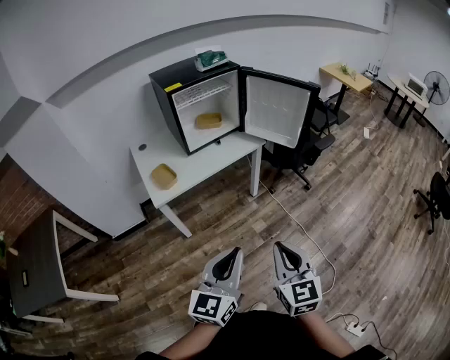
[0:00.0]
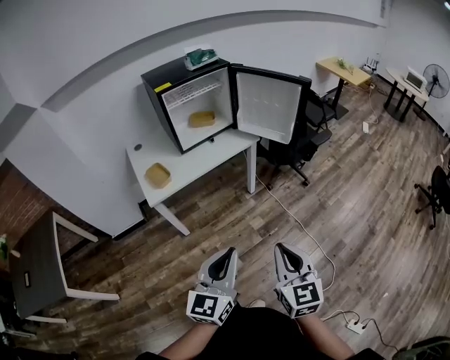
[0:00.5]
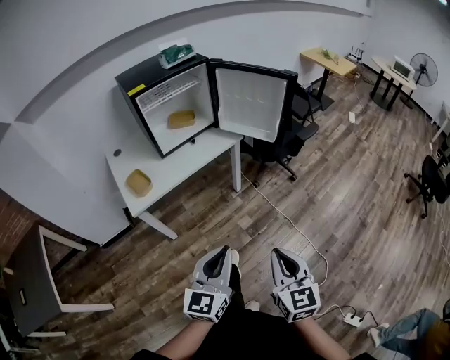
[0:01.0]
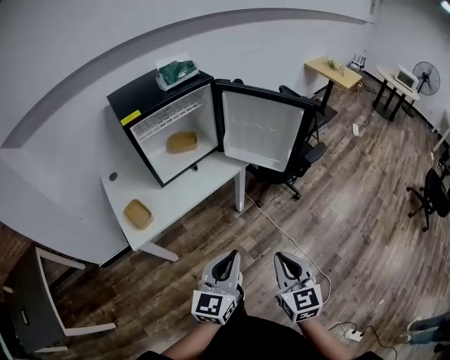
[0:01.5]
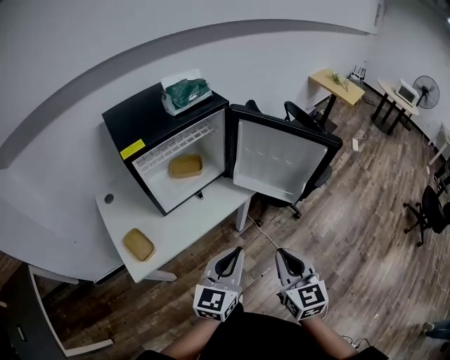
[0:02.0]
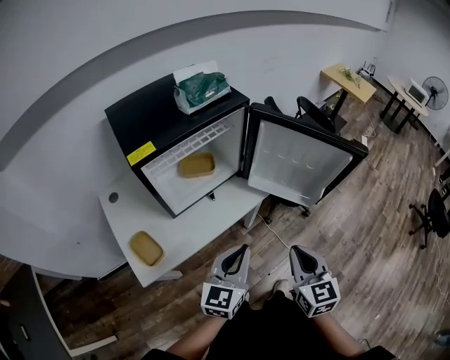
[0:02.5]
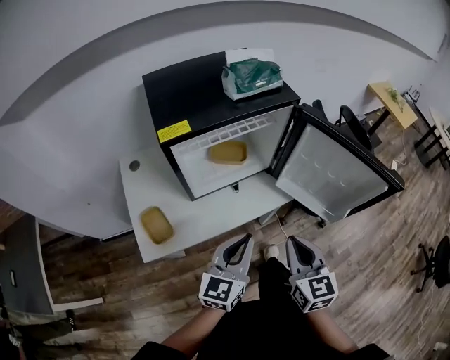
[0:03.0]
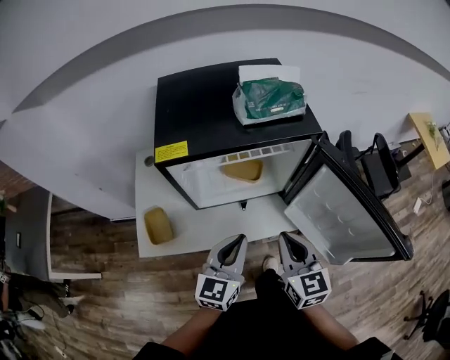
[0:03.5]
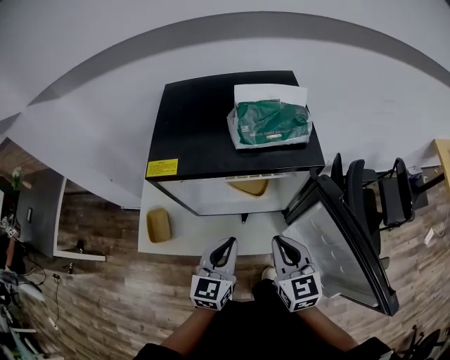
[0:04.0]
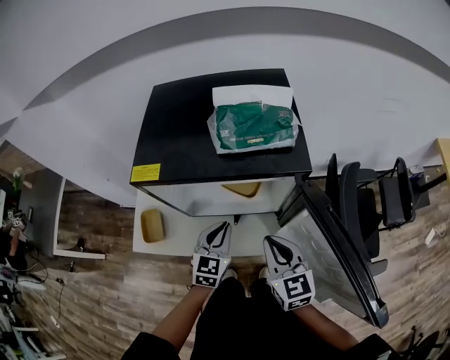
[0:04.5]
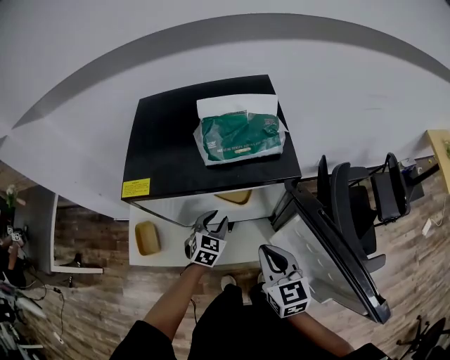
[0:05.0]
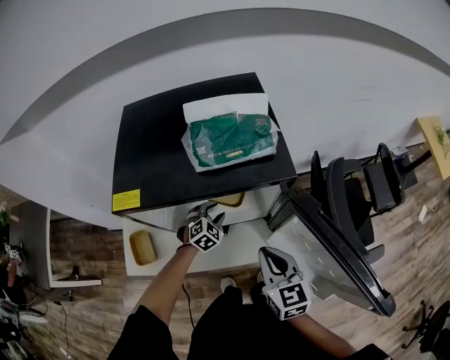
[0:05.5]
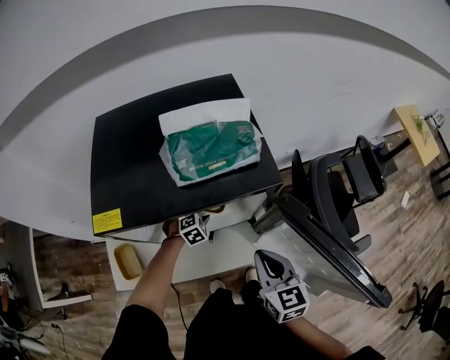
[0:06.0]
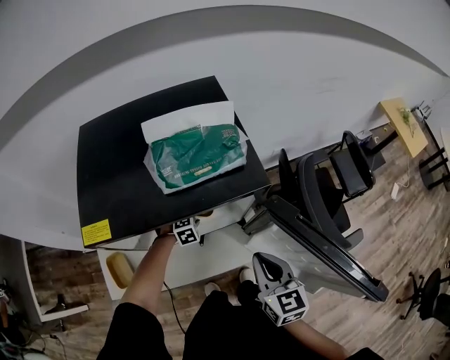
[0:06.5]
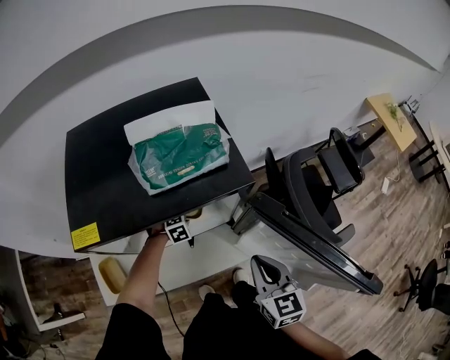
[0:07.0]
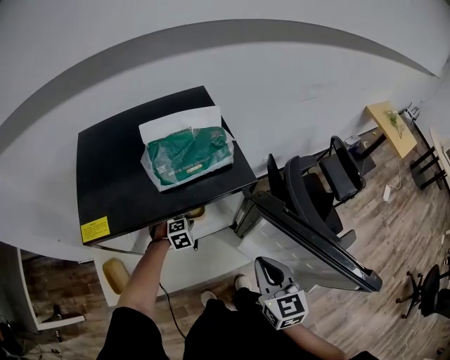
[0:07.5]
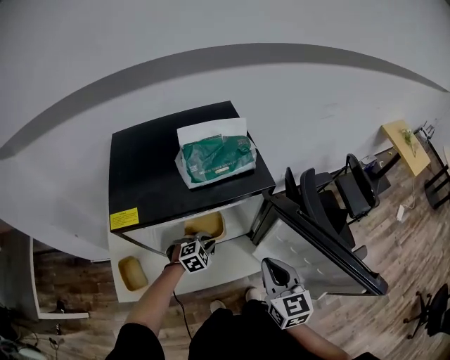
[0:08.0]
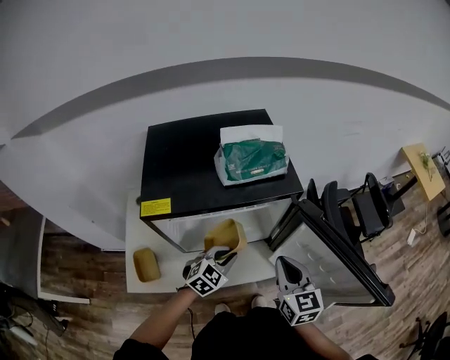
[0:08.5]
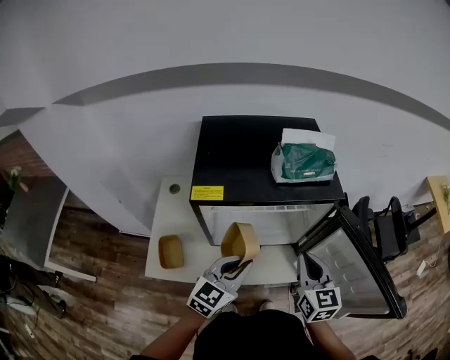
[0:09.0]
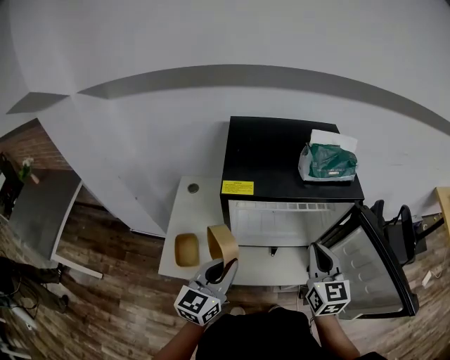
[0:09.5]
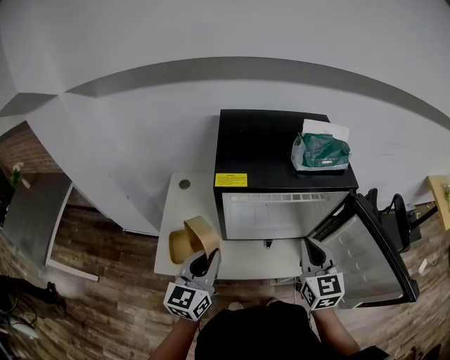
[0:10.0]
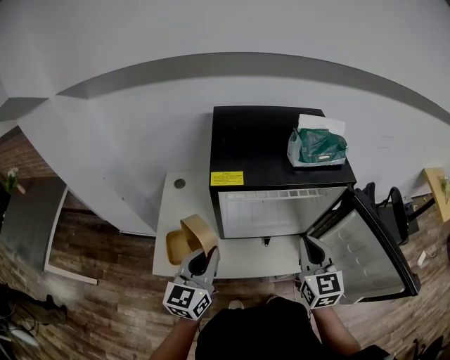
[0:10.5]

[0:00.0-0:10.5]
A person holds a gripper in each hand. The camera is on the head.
0:00.0 to 0:02.0: Both grippers move forward, roughly 40 cm.
0:02.0 to 0:04.0: The right gripper shifts by some 35 cm, and swivels approximately 40 degrees; the left gripper changes place by approximately 30 cm, and swivels some 40 degrees.
0:04.0 to 0:06.5: The right gripper travels to the right by approximately 5 cm, while the left gripper shifts about 35 cm downward and forward, points its fingers approximately 50 degrees further downward, and opens.
0:06.5 to 0:08.5: The left gripper shifts approximately 25 cm upward and backward, angles its fingers upward, by some 30 degrees, and closes its fingers.
0:08.5 to 0:10.5: The right gripper is displaced to the left by about 10 cm. Meanwhile the left gripper goes about 30 cm to the left, upward and backward, and points its fingers roughly 30 degrees further upward.

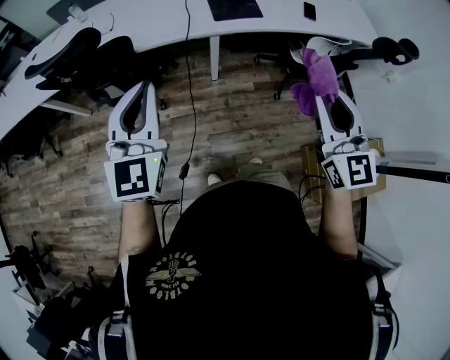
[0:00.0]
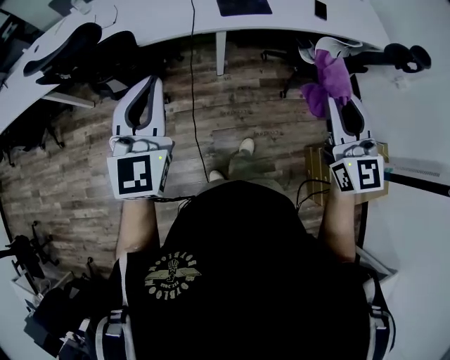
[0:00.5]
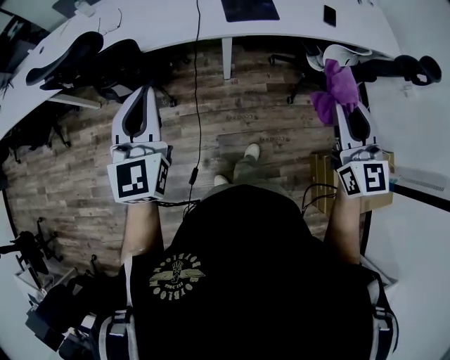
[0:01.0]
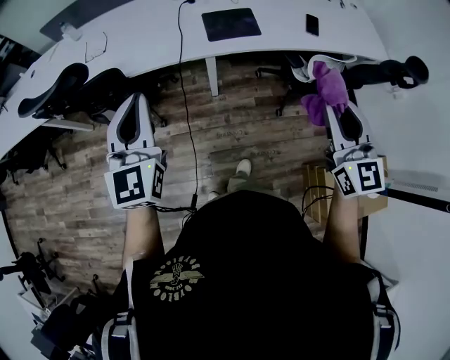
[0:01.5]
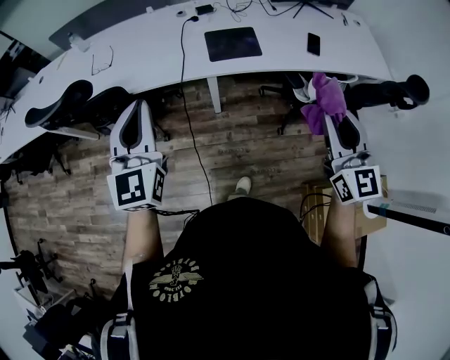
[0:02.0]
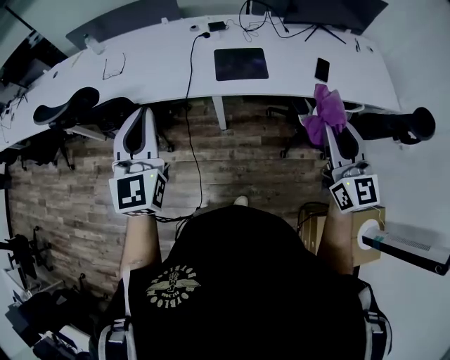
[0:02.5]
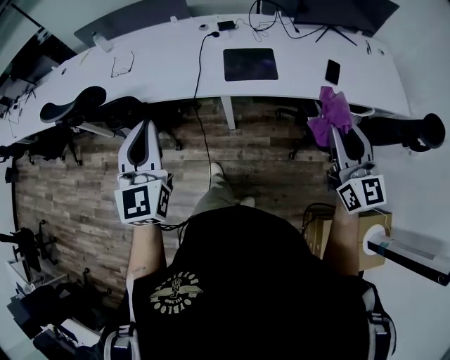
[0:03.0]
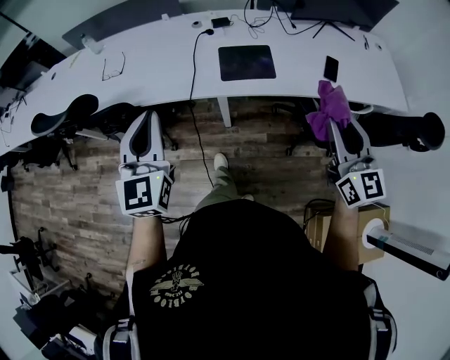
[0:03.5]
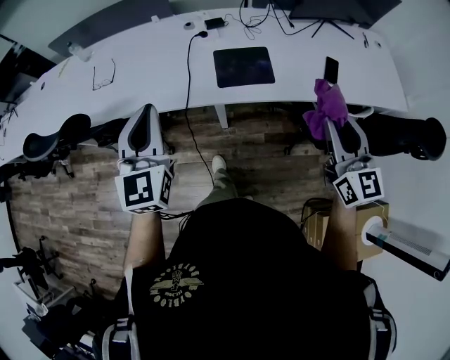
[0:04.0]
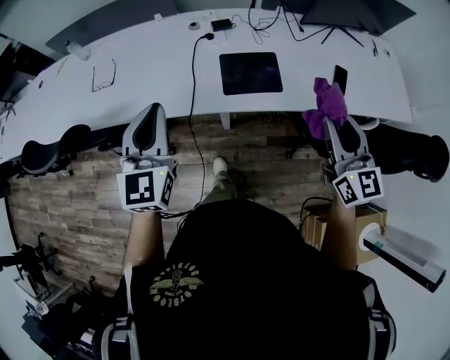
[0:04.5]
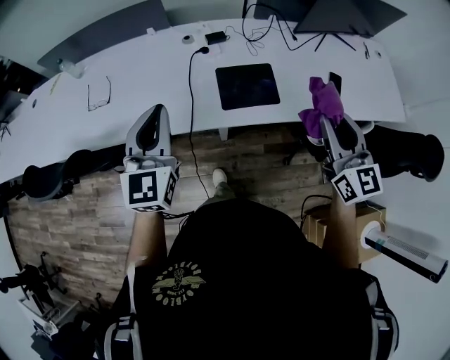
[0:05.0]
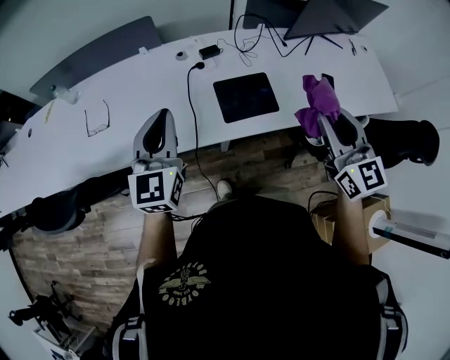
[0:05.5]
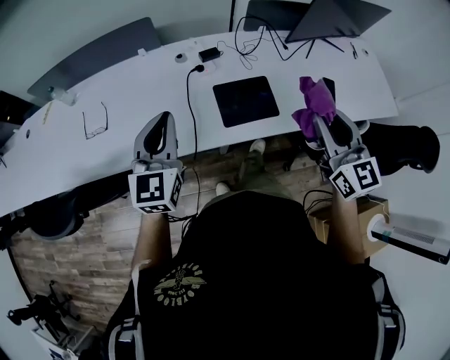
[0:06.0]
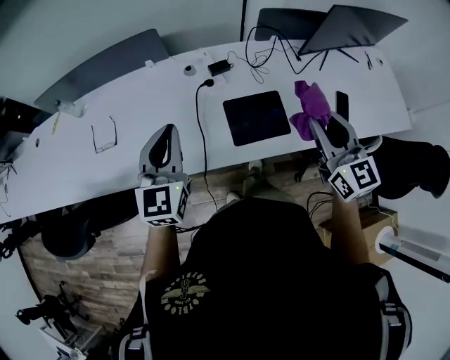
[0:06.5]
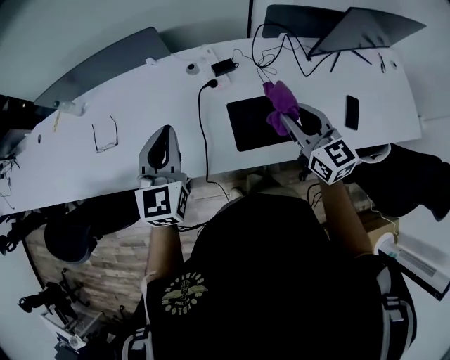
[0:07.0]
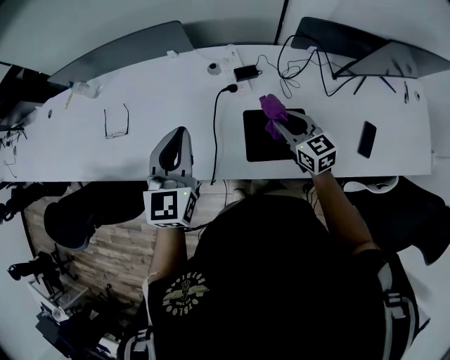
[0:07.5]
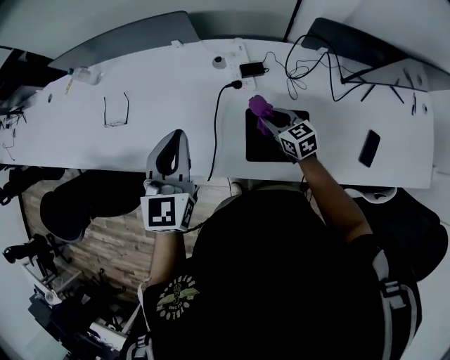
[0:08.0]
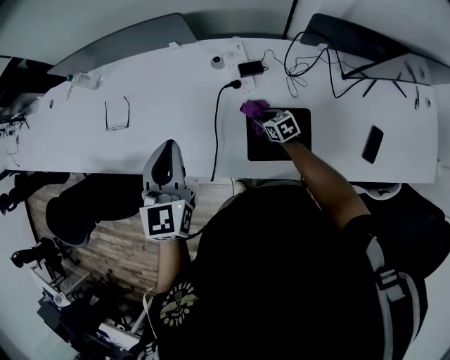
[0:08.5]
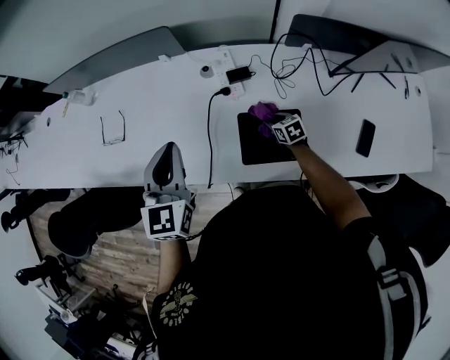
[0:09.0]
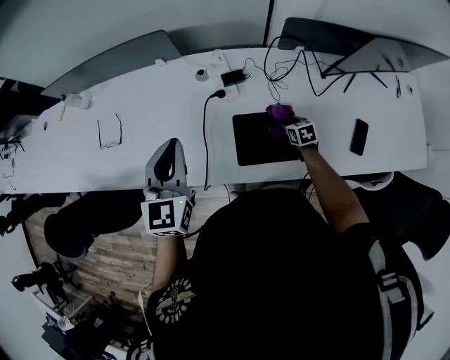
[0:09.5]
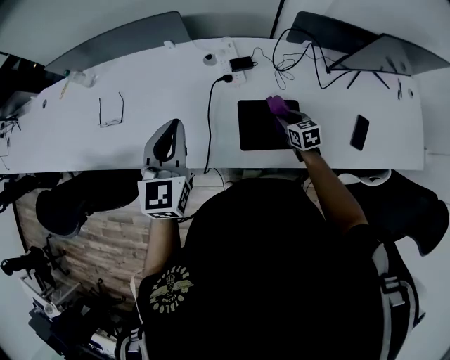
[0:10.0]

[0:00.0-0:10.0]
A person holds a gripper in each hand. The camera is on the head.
0:00.0 to 0:02.0: The left gripper travels forward by about 15 cm. The right gripper heads forward and to the right, covering some 20 cm.
0:02.0 to 0:04.0: The two grippers go roughly 15 cm forward.
0:04.0 to 0:06.0: The right gripper shifts about 15 cm forward and to the left, while the left gripper is displaced forward by some 15 cm.
0:06.0 to 0:08.0: The right gripper heads downward, covering approximately 30 cm, and turns by roughly 40 degrees. The left gripper moves roughly 10 cm.
0:08.0 to 0:10.0: The right gripper travels to the right and backward by some 10 cm.

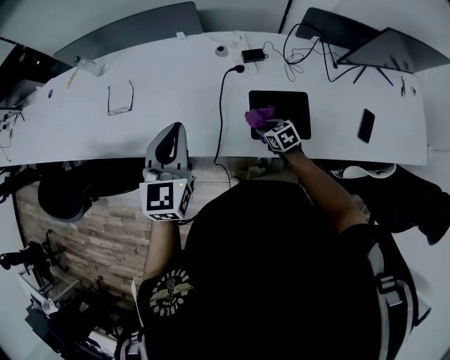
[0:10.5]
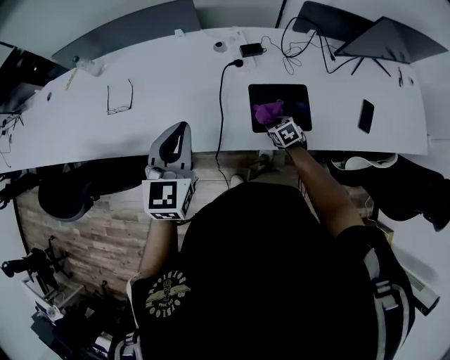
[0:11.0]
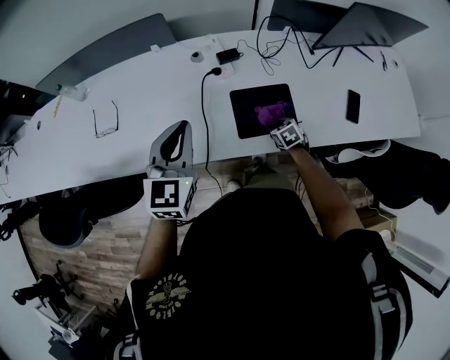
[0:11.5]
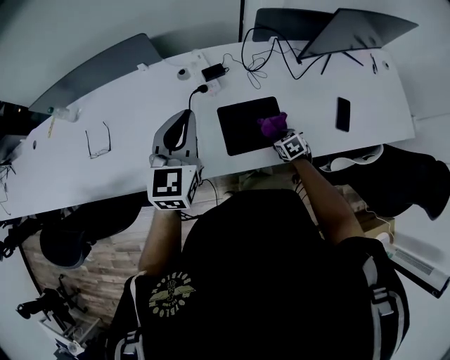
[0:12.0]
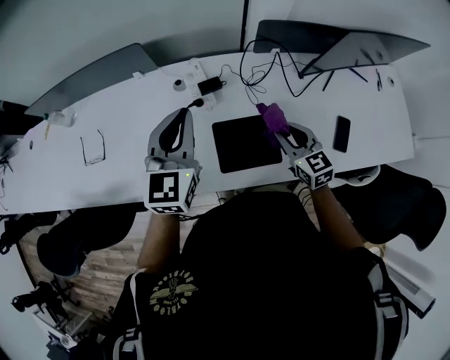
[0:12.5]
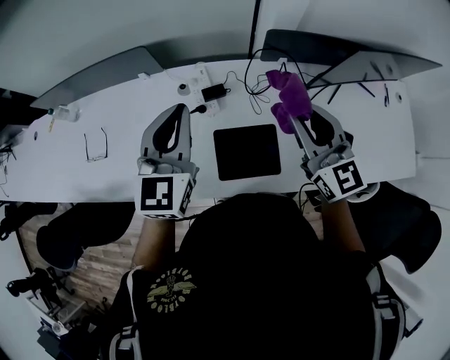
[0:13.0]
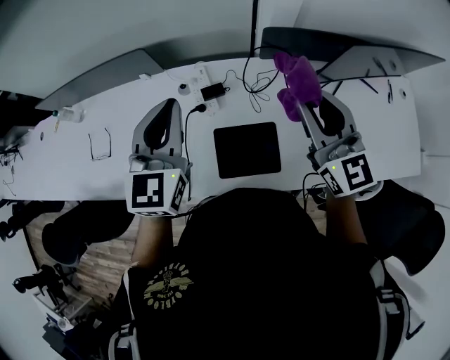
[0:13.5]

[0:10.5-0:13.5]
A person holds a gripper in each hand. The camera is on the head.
0:10.5 to 0:12.0: The right gripper travels to the right by about 15 cm, while the left gripper moves to the right and forward, roughly 15 cm.
0:12.0 to 0:13.5: The right gripper travels upward by about 50 cm, and angles its fingers upward, by approximately 60 degrees; the left gripper moves forward, upward and to the right, some 15 cm.

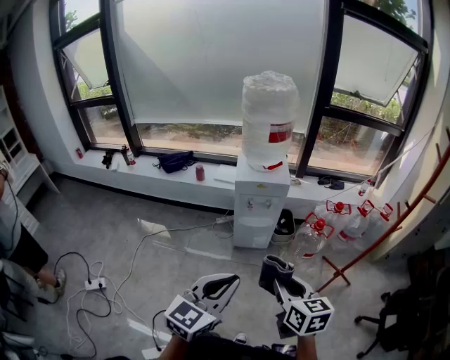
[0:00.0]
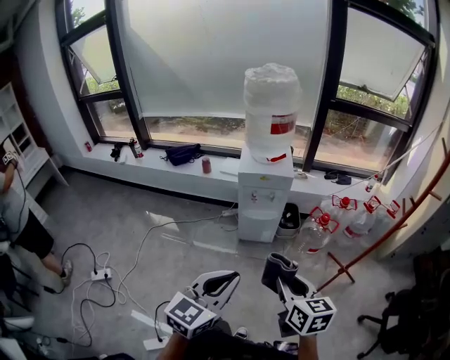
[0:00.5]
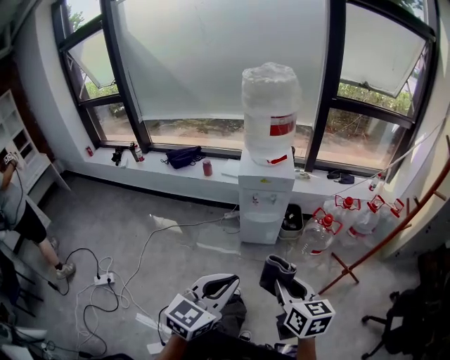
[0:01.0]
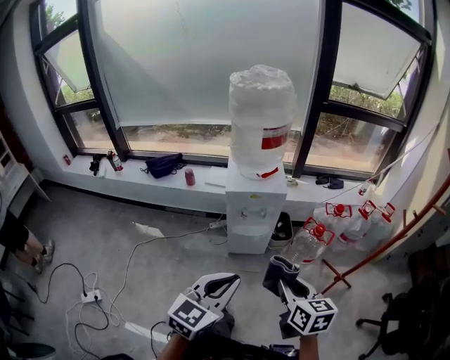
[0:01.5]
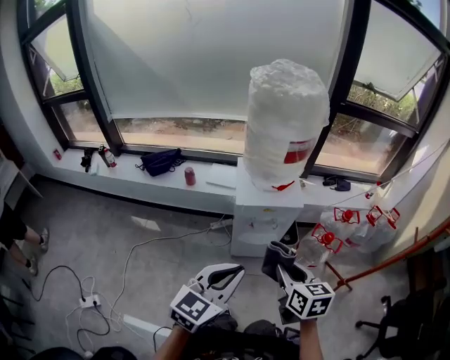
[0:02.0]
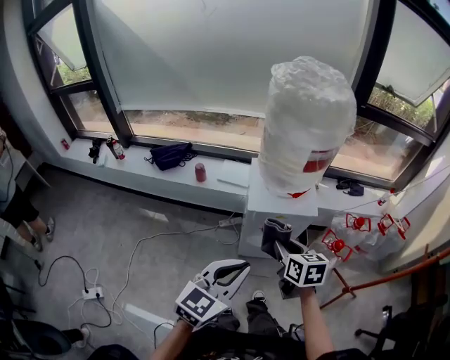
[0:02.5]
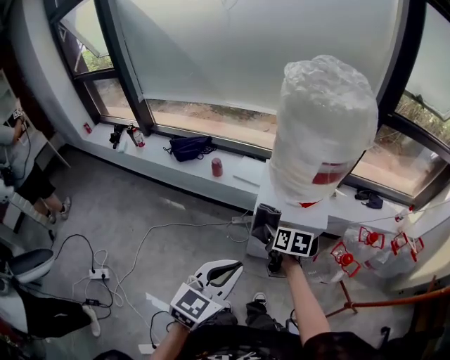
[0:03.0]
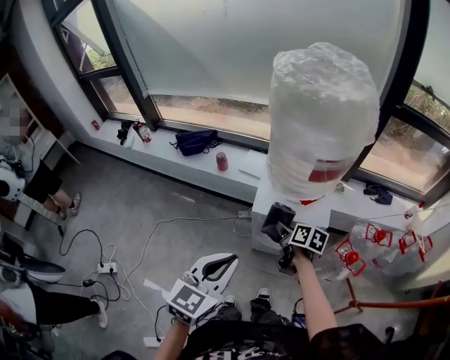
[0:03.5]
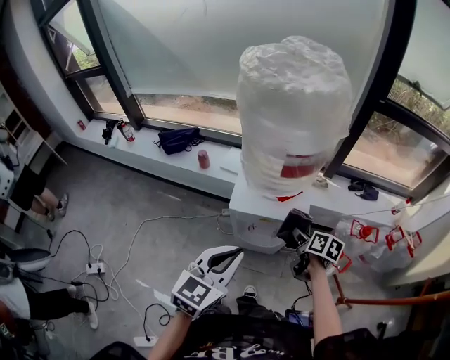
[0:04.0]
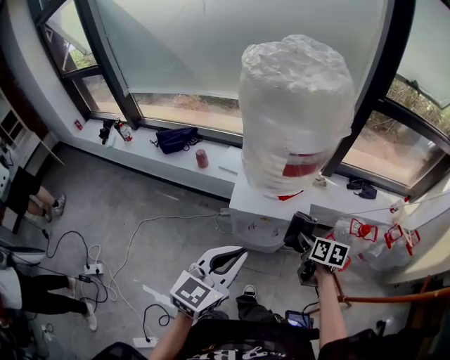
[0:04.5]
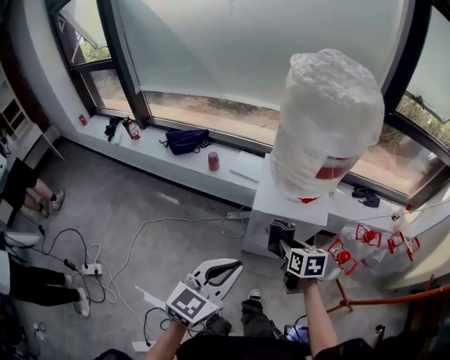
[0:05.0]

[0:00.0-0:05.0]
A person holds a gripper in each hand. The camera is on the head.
0:00.0 to 0:02.5: Both grippers travel together forward, some 35 cm.
0:02.5 to 0:05.0: The left gripper travels to the right and back again, some 10 cm each way; the right gripper goes approximately 10 cm downward and forward, and goes to the right and returns, some 20 cm each way.
